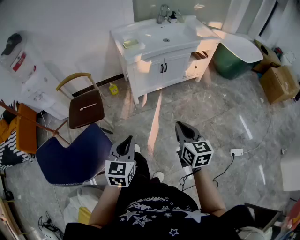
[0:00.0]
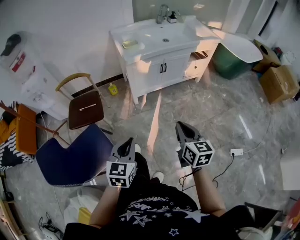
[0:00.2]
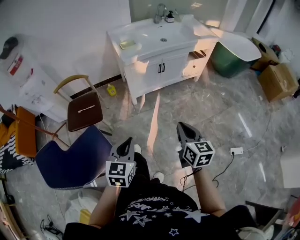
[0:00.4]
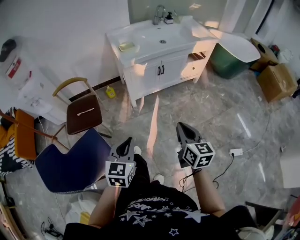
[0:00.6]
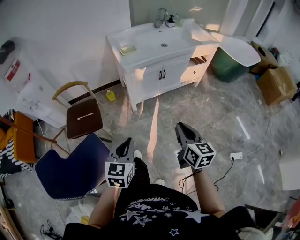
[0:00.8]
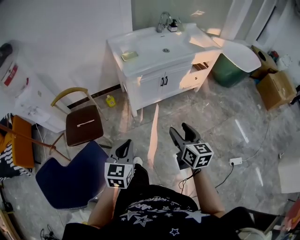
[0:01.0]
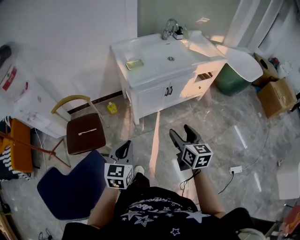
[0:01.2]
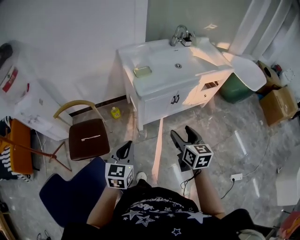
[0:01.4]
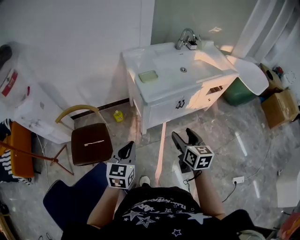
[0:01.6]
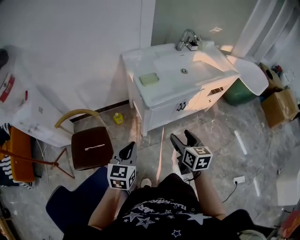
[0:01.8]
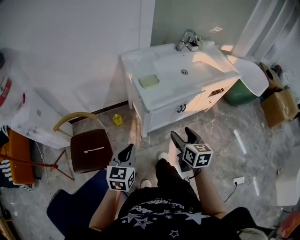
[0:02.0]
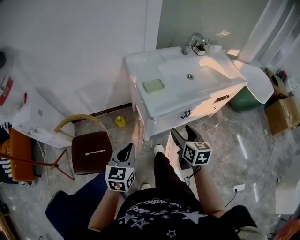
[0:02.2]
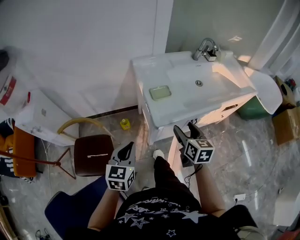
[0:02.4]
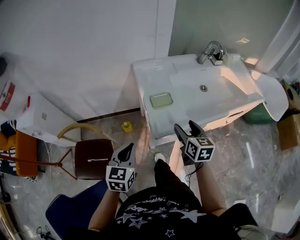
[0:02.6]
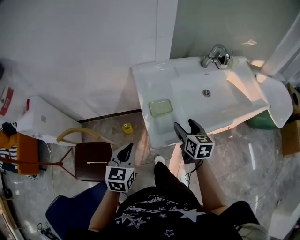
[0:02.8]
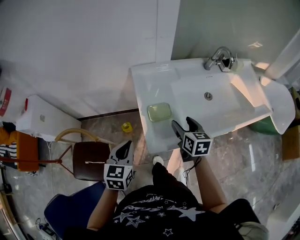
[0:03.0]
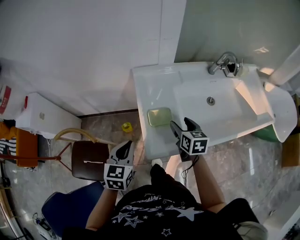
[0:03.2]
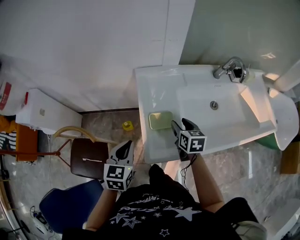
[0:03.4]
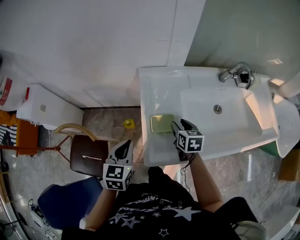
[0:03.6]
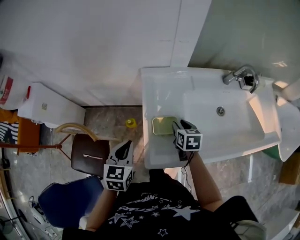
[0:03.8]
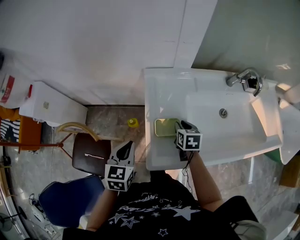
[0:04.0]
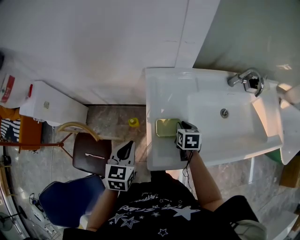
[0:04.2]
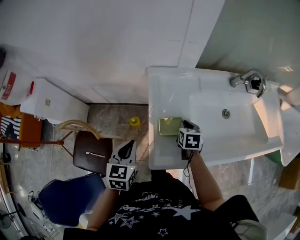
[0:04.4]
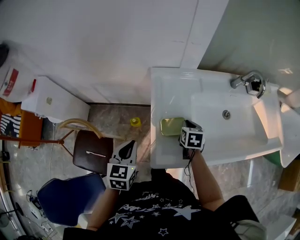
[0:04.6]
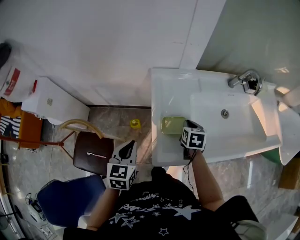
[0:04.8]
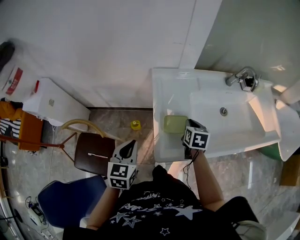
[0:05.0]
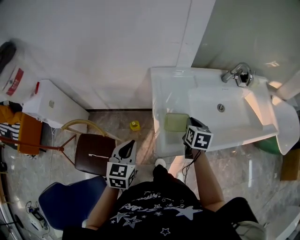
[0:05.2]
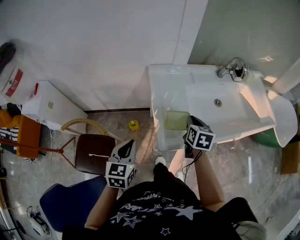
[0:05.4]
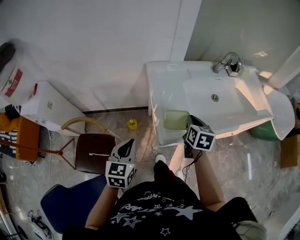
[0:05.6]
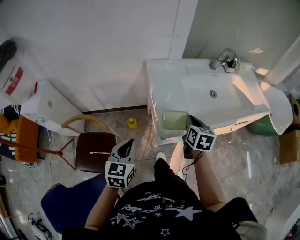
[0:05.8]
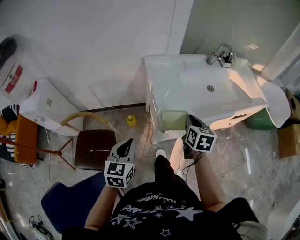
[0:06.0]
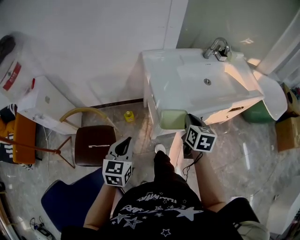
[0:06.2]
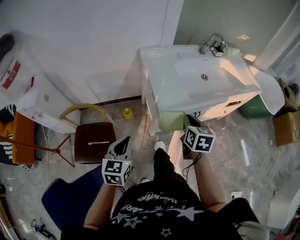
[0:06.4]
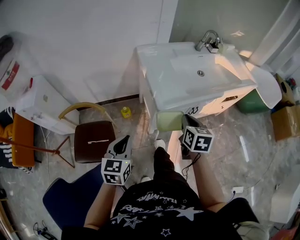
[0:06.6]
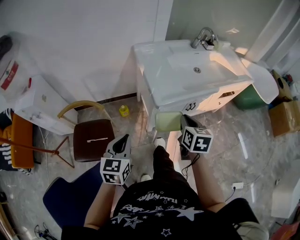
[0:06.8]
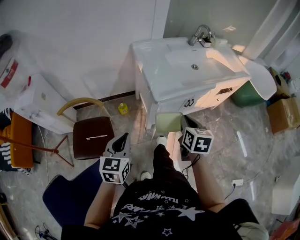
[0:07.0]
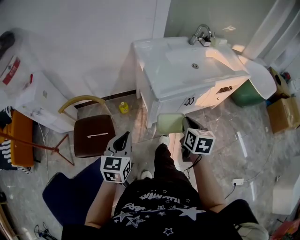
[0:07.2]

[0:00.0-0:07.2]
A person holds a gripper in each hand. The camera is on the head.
0:00.0 to 0:01.4: The right gripper is displaced forward by about 25 cm, and opens up. Meanwhile the left gripper travels forward and to the left by roughly 30 cm.
0:01.4 to 0:02.8: The two grippers go approximately 35 cm forward.
0:02.8 to 0:04.4: The right gripper shifts about 20 cm forward and downward, rotates about 30 degrees, and closes its fingers. The left gripper goes some 10 cm forward.
0:04.4 to 0:05.8: The left gripper shifts approximately 15 cm backward; the right gripper goes approximately 25 cm backward and upward, and changes its angle by roughly 20 degrees.
0:05.8 to 0:07.2: Both grippers move backward, some 20 cm.

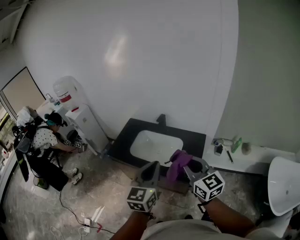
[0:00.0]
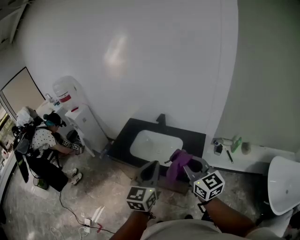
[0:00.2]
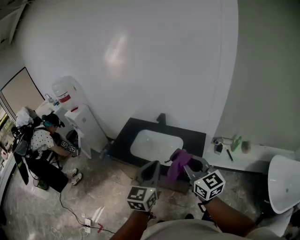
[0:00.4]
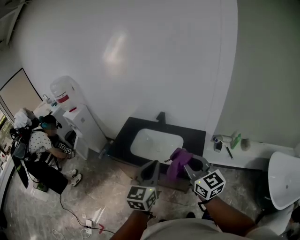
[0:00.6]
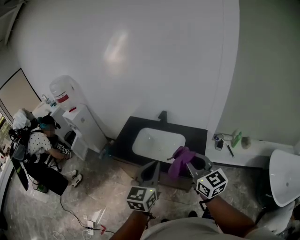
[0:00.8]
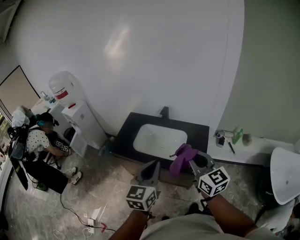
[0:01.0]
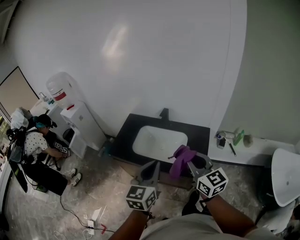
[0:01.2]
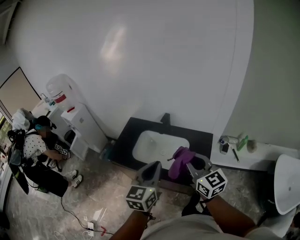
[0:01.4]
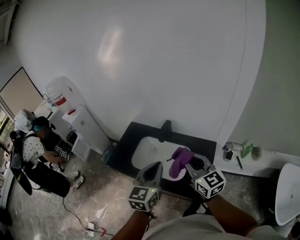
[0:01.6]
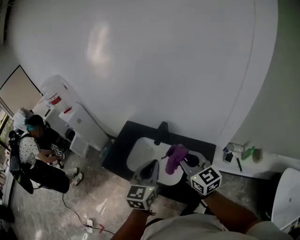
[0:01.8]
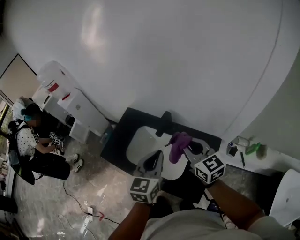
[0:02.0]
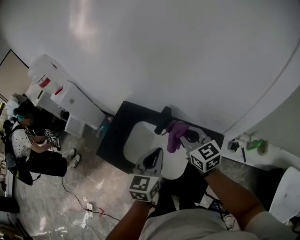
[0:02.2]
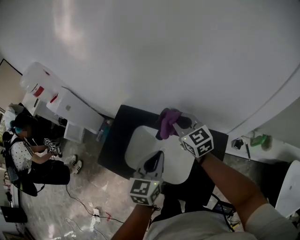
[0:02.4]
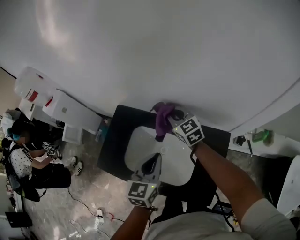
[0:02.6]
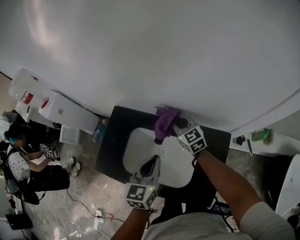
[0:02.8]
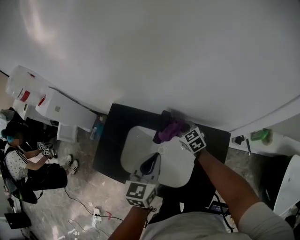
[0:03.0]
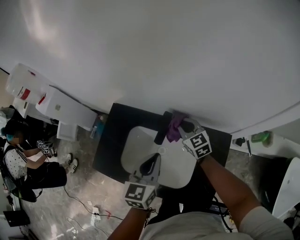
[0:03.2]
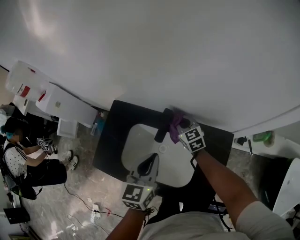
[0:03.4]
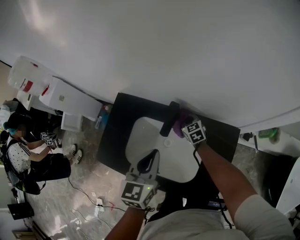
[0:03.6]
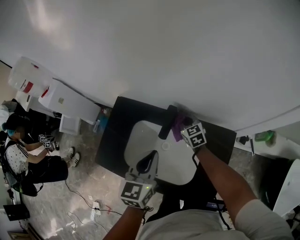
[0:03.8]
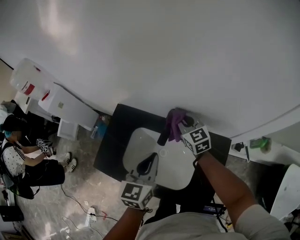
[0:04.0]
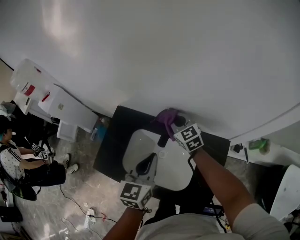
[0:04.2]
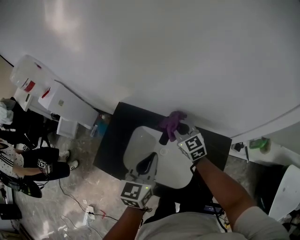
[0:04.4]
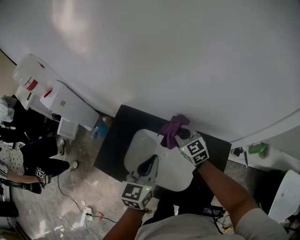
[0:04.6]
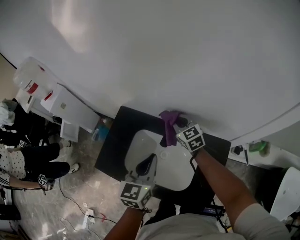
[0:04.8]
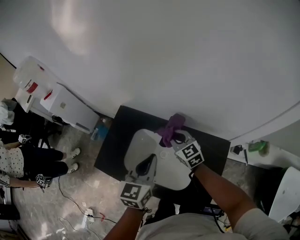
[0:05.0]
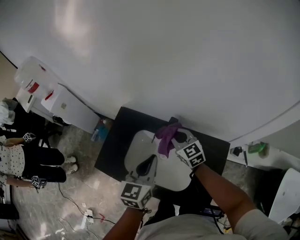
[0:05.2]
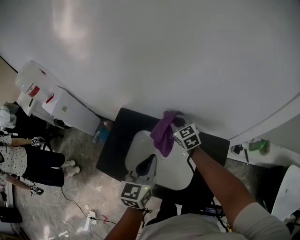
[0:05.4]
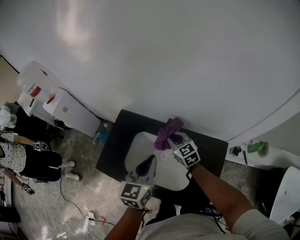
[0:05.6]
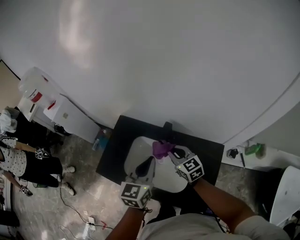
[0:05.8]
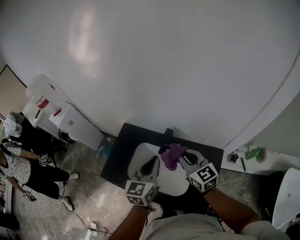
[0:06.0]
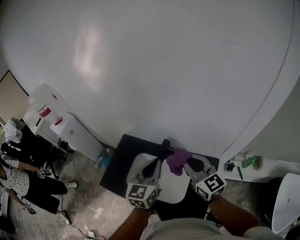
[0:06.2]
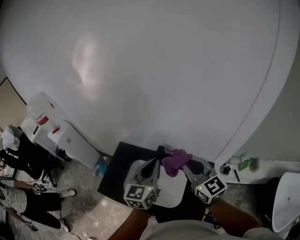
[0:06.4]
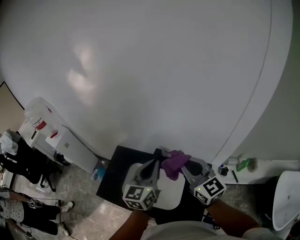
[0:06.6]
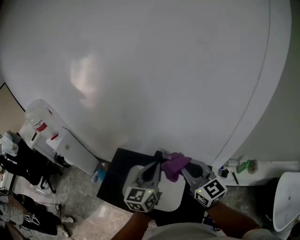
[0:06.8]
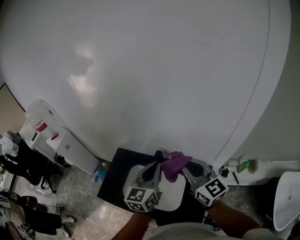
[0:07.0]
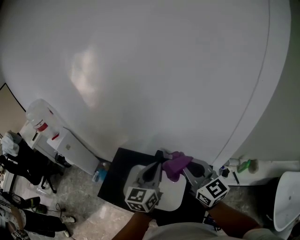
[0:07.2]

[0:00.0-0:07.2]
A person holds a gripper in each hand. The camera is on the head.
0:00.0 to 0:01.4: Both grippers travel together forward, some 10 cm.
0:01.4 to 0:02.8: Both grippers travel together forward and downward, about 50 cm.
0:02.8 to 0:04.4: The right gripper swings up and down, some 20 cm each way, with 3 reversals.
0:04.4 to 0:05.8: The right gripper goes approximately 10 cm backward.
0:05.8 to 0:07.2: The left gripper goes approximately 15 cm upward and to the right. The right gripper shifts some 30 cm upward, and turns by some 20 degrees.

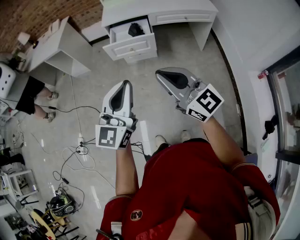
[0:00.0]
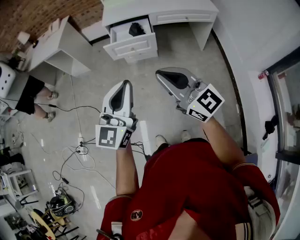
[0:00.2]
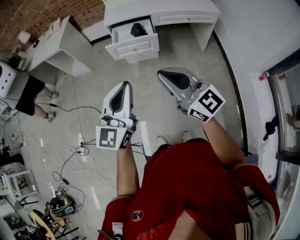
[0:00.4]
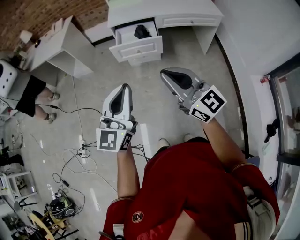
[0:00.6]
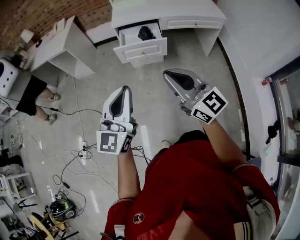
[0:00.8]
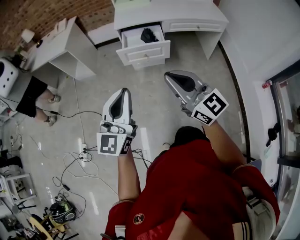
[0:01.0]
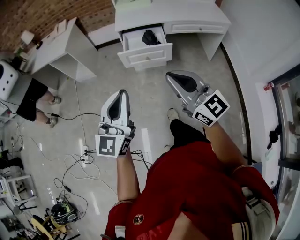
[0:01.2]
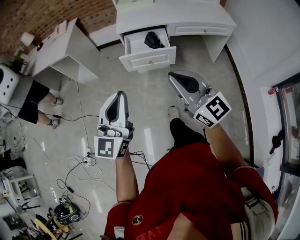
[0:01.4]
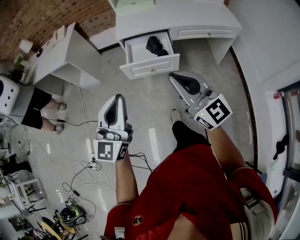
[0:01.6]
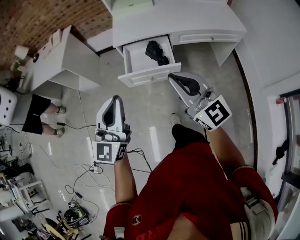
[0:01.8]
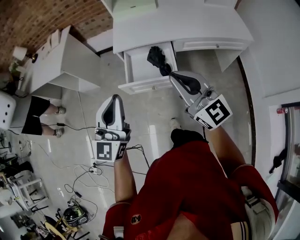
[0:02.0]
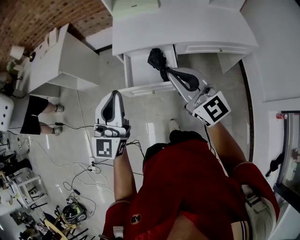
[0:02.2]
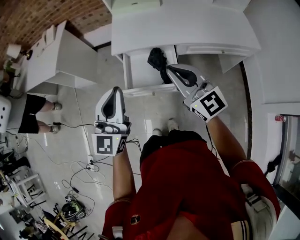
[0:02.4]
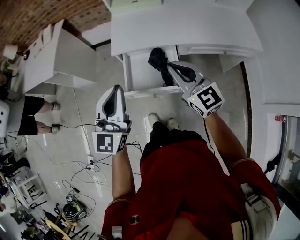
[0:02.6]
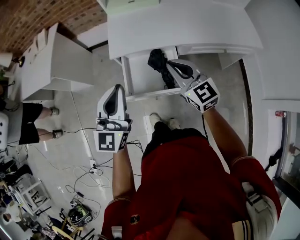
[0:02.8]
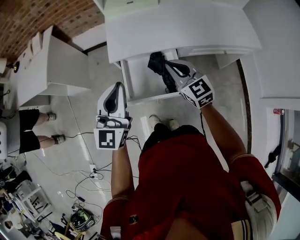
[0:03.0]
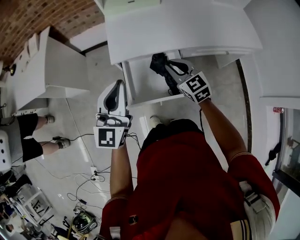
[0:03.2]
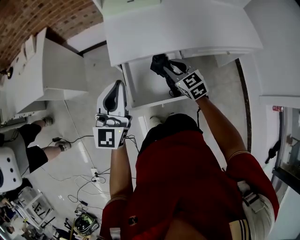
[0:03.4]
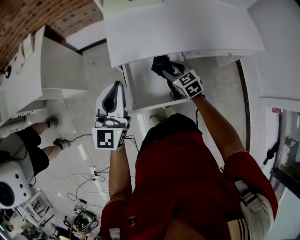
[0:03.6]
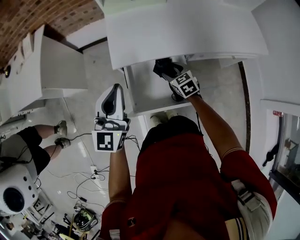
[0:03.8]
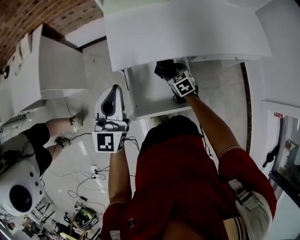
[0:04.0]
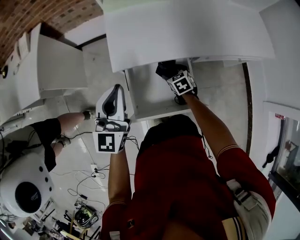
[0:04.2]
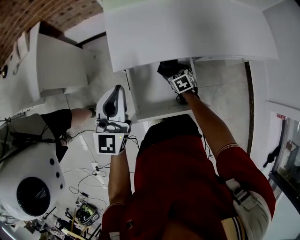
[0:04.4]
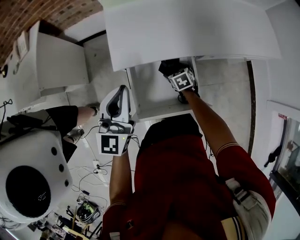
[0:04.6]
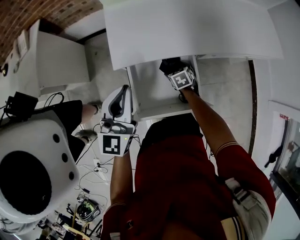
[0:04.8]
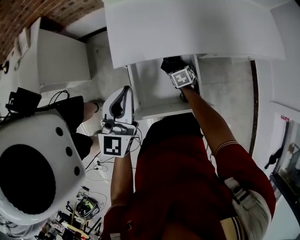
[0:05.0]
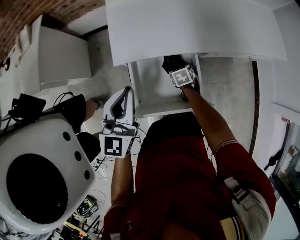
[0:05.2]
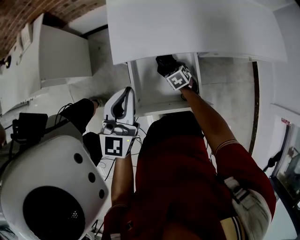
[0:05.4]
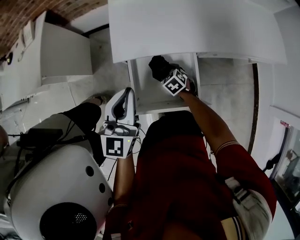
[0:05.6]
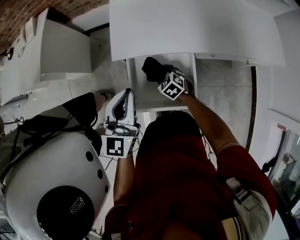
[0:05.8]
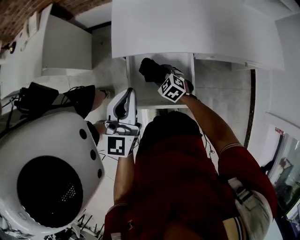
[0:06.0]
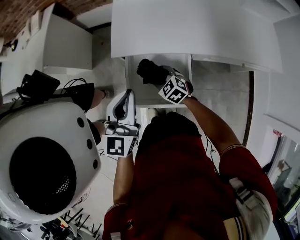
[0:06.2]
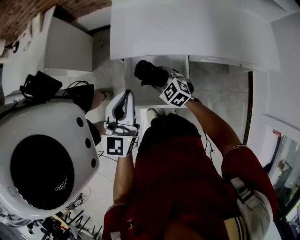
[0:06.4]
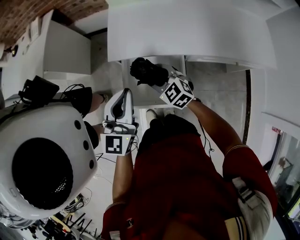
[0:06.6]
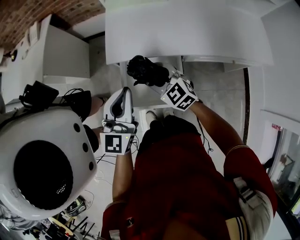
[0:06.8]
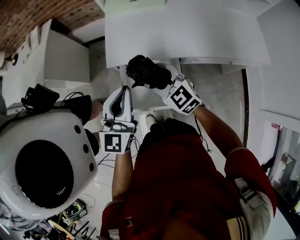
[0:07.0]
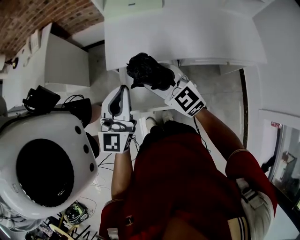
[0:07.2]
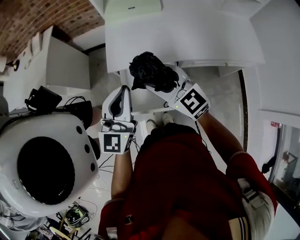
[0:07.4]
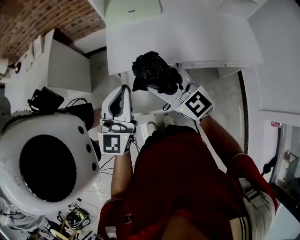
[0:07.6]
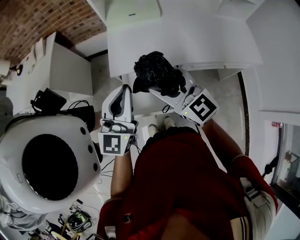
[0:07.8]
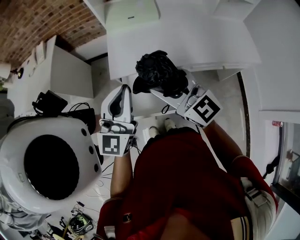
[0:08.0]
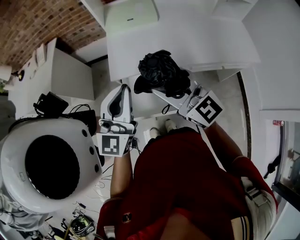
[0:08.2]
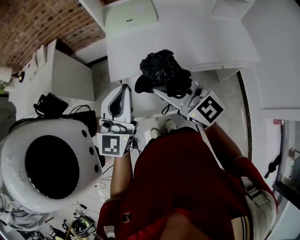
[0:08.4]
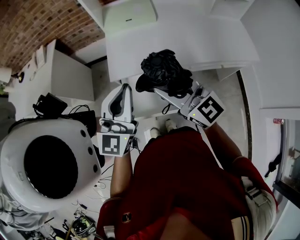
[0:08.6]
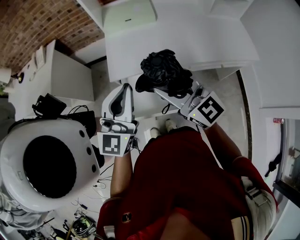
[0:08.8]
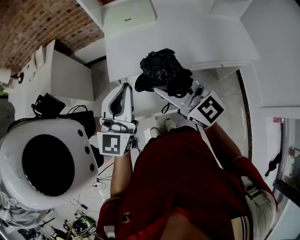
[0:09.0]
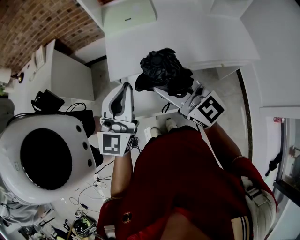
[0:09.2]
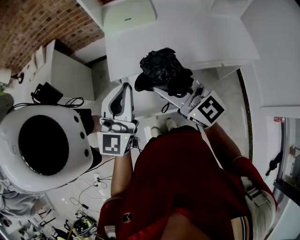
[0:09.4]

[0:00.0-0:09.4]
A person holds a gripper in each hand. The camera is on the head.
0:00.0 to 0:01.6: The left gripper travels forward and to the left by approximately 25 cm. Meanwhile the right gripper is displaced forward by about 25 cm.
0:01.6 to 0:03.2: The two grippers travel together, forward, roughly 40 cm. The right gripper is displaced downward by about 25 cm, and tilts its fingers some 30 degrees downward.
0:03.2 to 0:04.8: The left gripper heads forward and downward, covering some 15 cm; the right gripper shifts about 30 cm downward, tips its fingers downward by roughly 40 degrees, and opens up.
0:04.8 to 0:06.2: The right gripper goes approximately 15 cm upward, to the left and backward, swivels some 40 degrees, and closes its fingers. Meanwhile the left gripper is displaced backward by some 10 cm.
0:06.2 to 0:07.8: The left gripper shifts about 10 cm upward. Meanwhile the right gripper heads upward, covering some 35 cm, and points its fingers some 40 degrees further upward.
0:07.8 to 0:09.4: The two grippers go roughly 5 cm backward.
